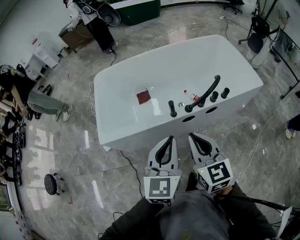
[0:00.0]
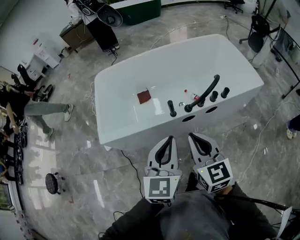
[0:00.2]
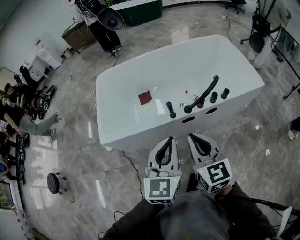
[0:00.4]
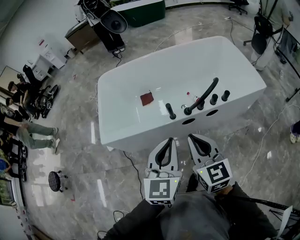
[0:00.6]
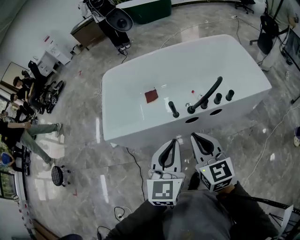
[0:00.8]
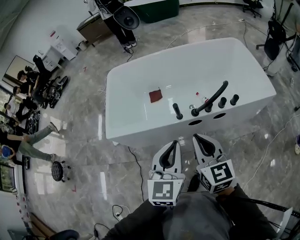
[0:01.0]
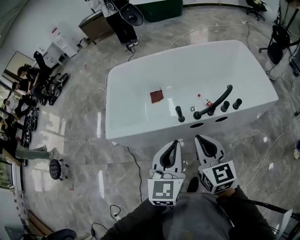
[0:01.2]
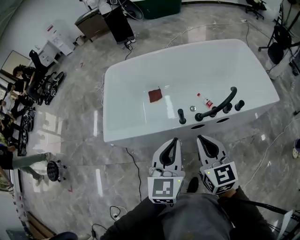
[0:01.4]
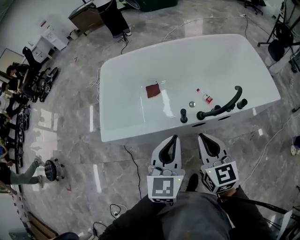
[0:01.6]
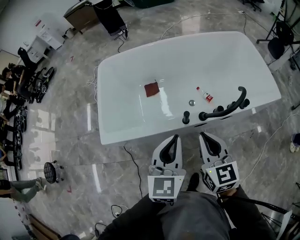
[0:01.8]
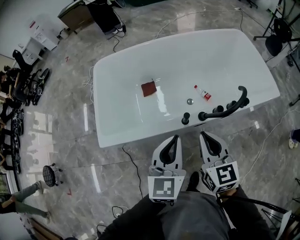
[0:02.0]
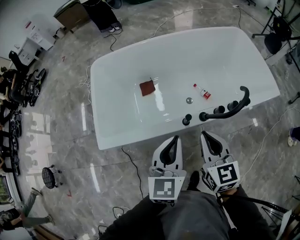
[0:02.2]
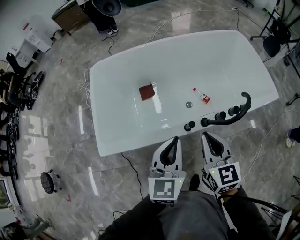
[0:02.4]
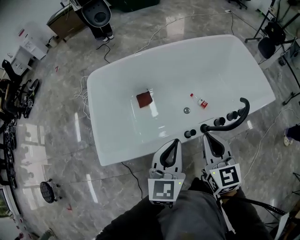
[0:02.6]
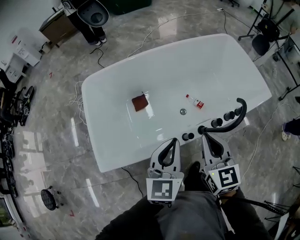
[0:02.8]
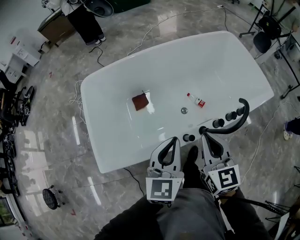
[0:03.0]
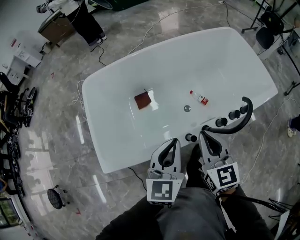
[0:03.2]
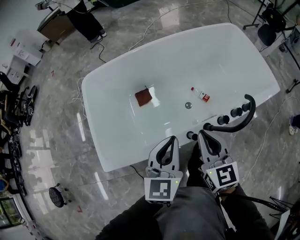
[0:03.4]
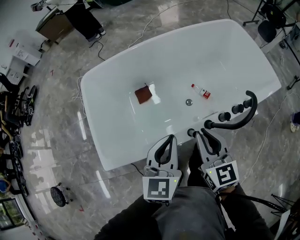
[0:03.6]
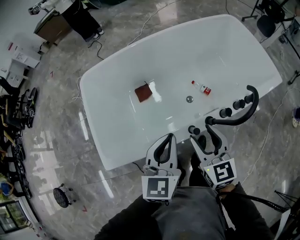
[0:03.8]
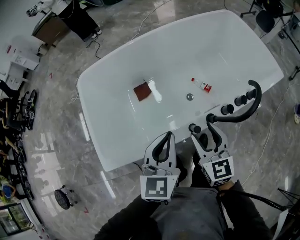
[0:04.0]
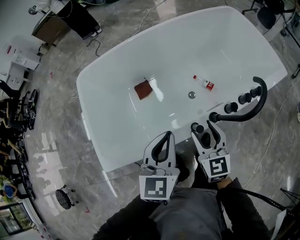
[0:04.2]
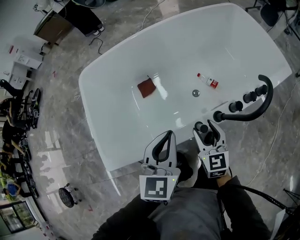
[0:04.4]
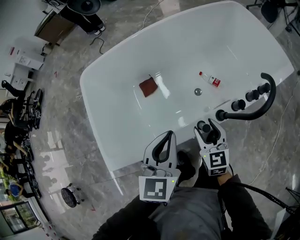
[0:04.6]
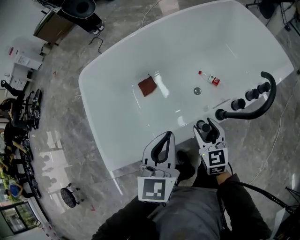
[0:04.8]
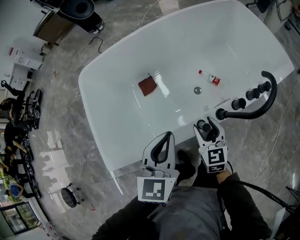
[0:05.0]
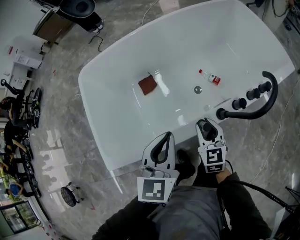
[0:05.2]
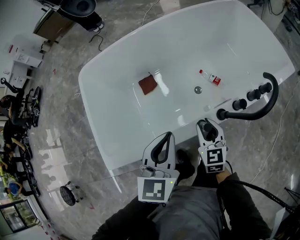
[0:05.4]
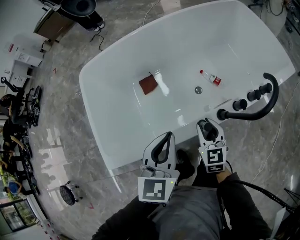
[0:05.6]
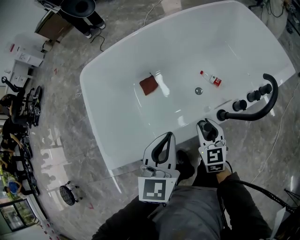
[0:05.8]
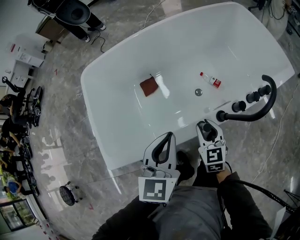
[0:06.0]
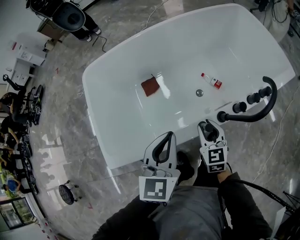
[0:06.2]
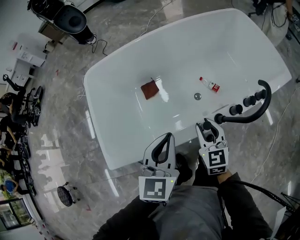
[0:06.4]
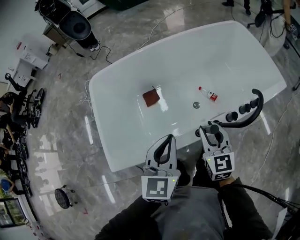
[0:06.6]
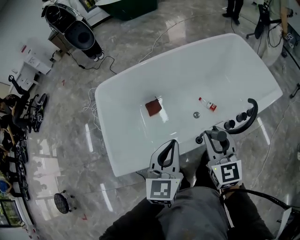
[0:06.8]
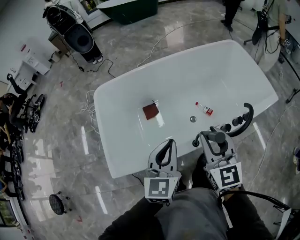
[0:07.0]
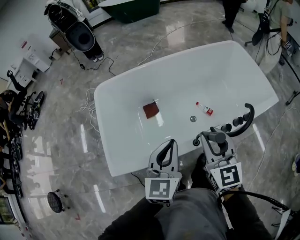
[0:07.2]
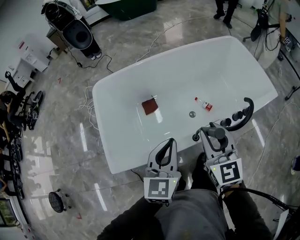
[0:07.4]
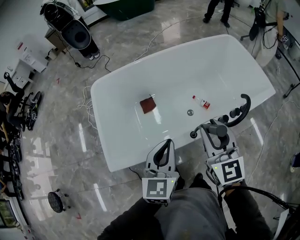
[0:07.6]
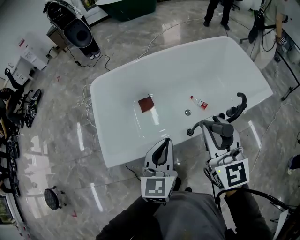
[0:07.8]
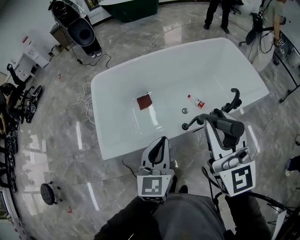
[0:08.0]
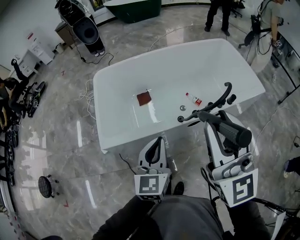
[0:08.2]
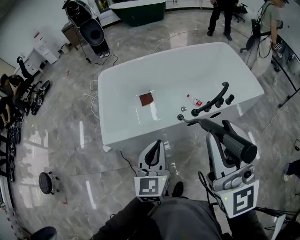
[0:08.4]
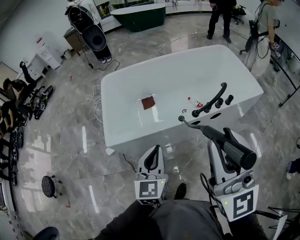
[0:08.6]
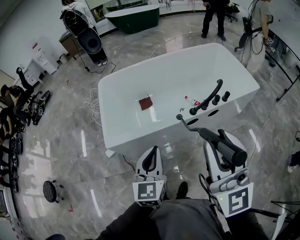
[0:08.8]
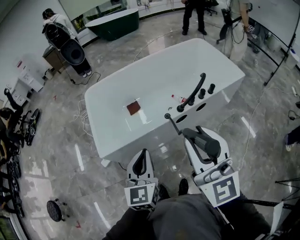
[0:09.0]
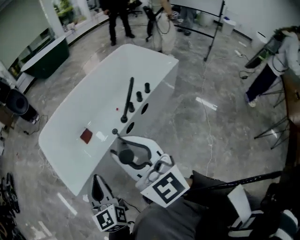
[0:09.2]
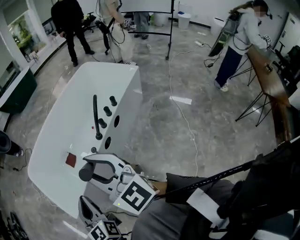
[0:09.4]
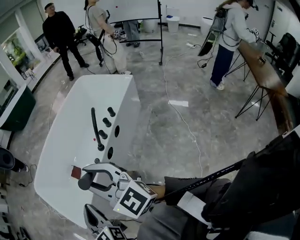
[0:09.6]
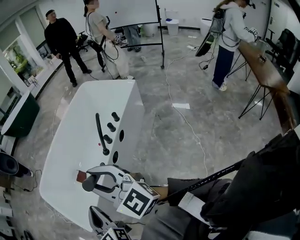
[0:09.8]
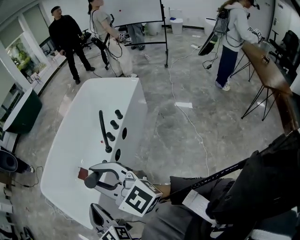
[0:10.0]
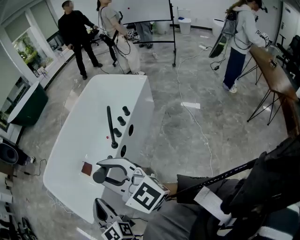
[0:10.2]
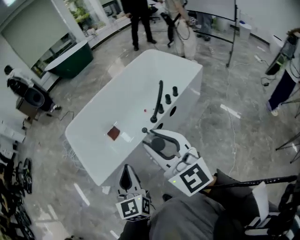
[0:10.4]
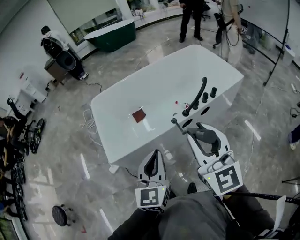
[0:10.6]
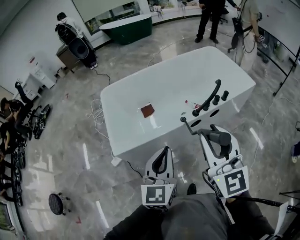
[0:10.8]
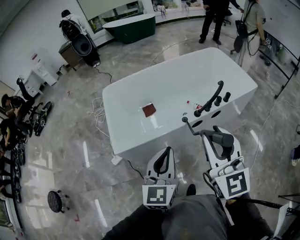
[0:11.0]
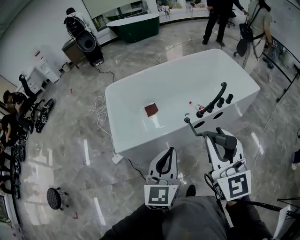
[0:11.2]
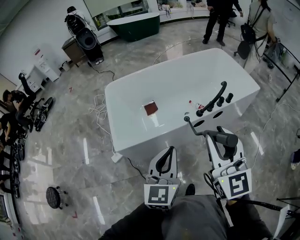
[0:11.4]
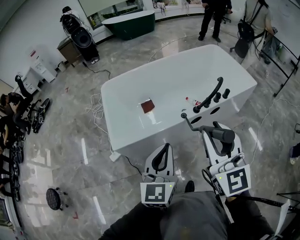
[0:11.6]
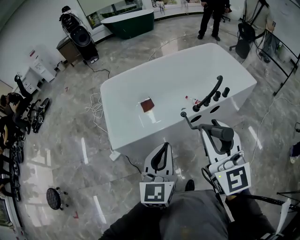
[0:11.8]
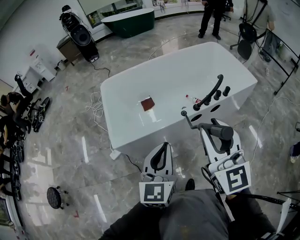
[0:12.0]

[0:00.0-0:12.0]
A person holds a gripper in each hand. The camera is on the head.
0:00.0 to 0:01.6: The left gripper moves forward, some 10 cm. Meanwhile the right gripper travels forward and downward by approximately 10 cm.
0:01.6 to 0:03.0: Both grippers move forward, approximately 15 cm.
0:03.0 to 0:04.4: The left gripper goes roughly 10 cm downward; the right gripper shifts approximately 20 cm downward, and opens its fingers.
0:04.4 to 0:06.0: The right gripper closes up.
0:06.0 to 0:07.6: The left gripper goes about 10 cm upward. Meanwhile the right gripper is displaced upward by approximately 30 cm, and rotates some 20 degrees.
0:07.6 to 0:09.0: The right gripper travels backward and upward by approximately 30 cm, and changes its angle by some 20 degrees; the left gripper travels backward by about 25 cm.
0:09.0 to 0:10.4: Both grippers move to the right and backward, some 20 cm.
0:10.4 to 0:12.0: The two grippers go some 20 cm to the left and forward.

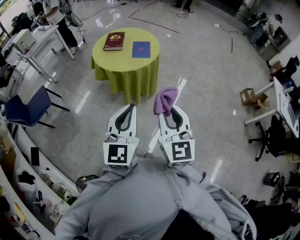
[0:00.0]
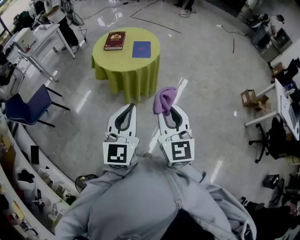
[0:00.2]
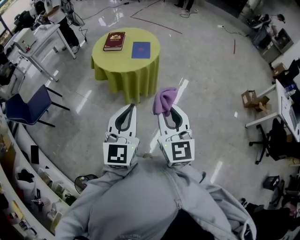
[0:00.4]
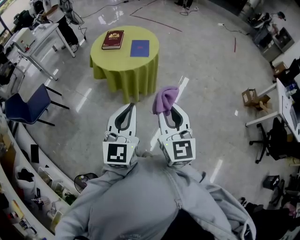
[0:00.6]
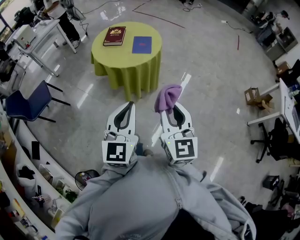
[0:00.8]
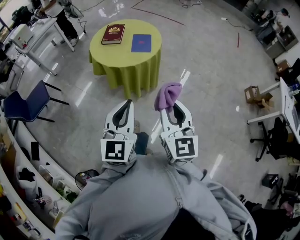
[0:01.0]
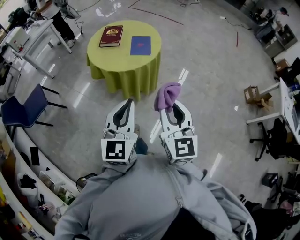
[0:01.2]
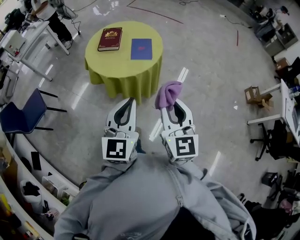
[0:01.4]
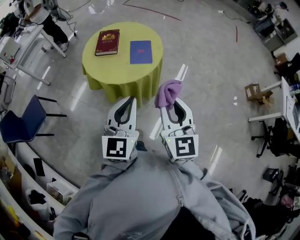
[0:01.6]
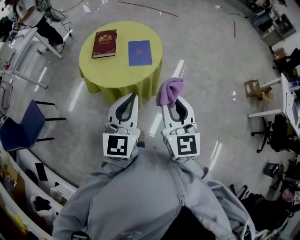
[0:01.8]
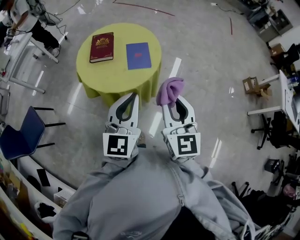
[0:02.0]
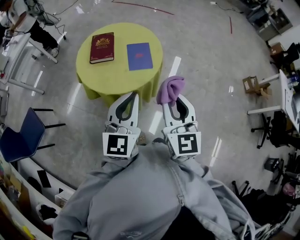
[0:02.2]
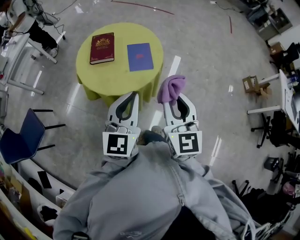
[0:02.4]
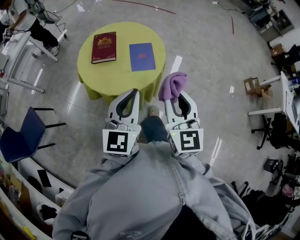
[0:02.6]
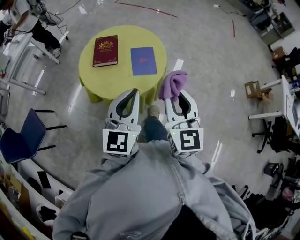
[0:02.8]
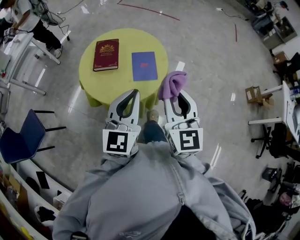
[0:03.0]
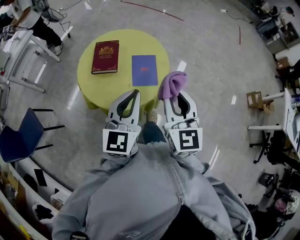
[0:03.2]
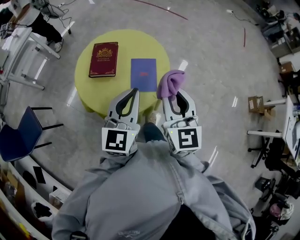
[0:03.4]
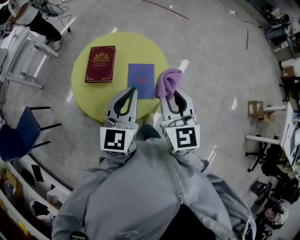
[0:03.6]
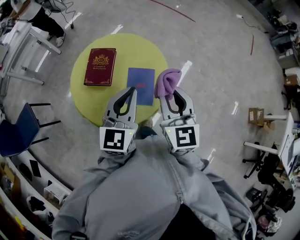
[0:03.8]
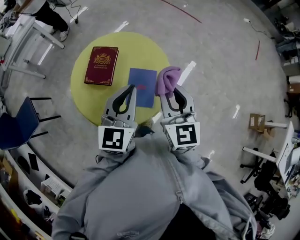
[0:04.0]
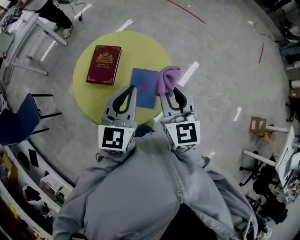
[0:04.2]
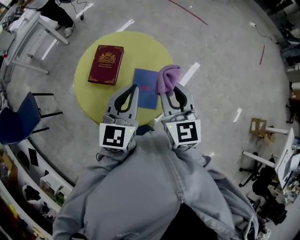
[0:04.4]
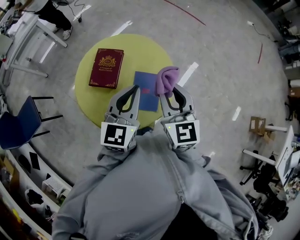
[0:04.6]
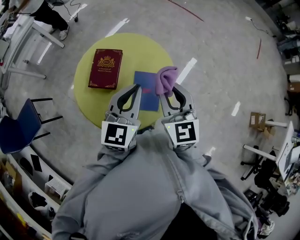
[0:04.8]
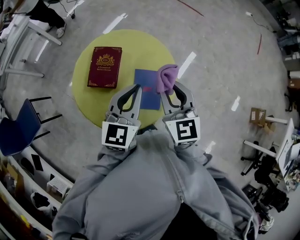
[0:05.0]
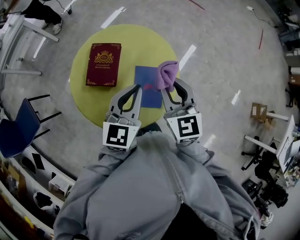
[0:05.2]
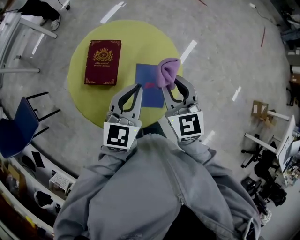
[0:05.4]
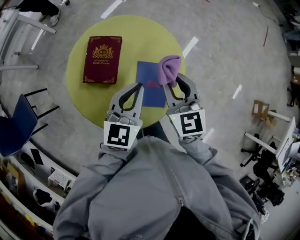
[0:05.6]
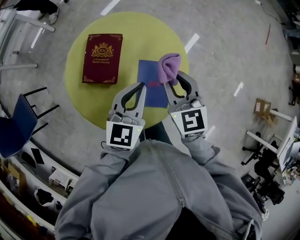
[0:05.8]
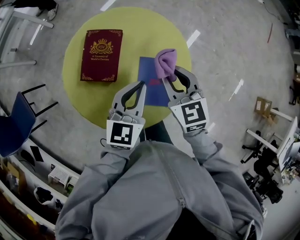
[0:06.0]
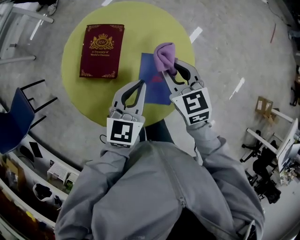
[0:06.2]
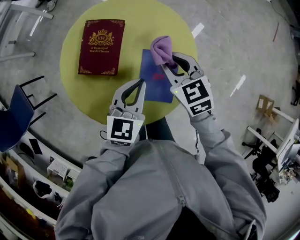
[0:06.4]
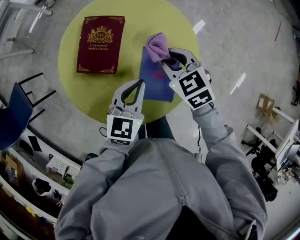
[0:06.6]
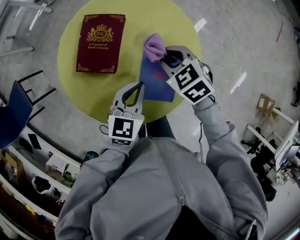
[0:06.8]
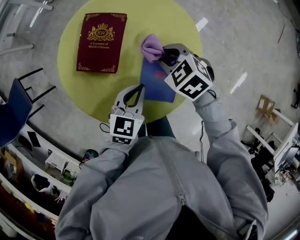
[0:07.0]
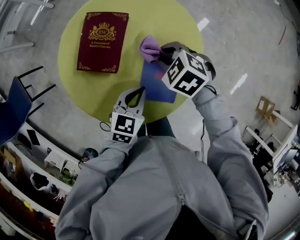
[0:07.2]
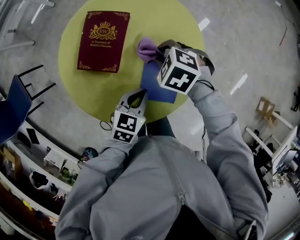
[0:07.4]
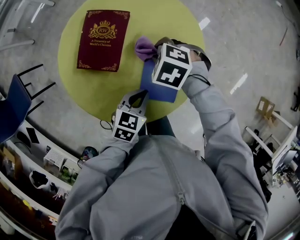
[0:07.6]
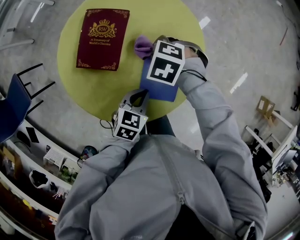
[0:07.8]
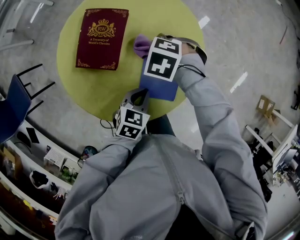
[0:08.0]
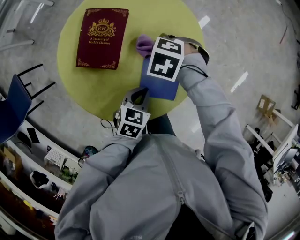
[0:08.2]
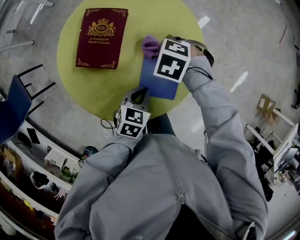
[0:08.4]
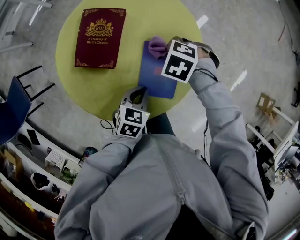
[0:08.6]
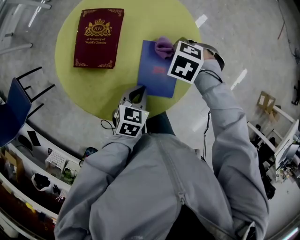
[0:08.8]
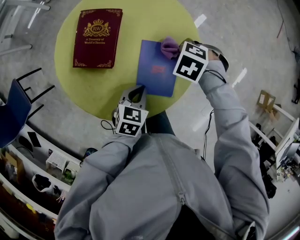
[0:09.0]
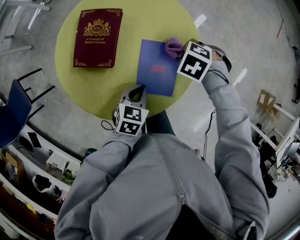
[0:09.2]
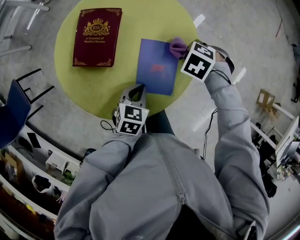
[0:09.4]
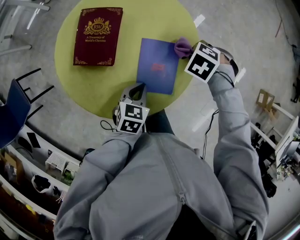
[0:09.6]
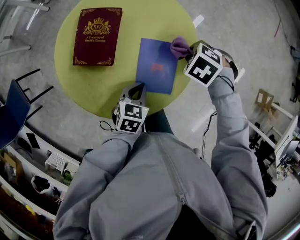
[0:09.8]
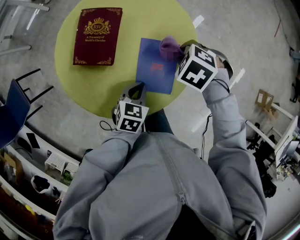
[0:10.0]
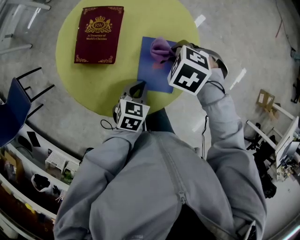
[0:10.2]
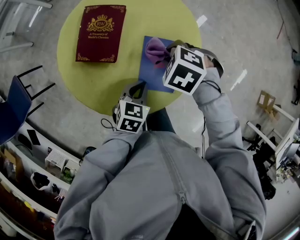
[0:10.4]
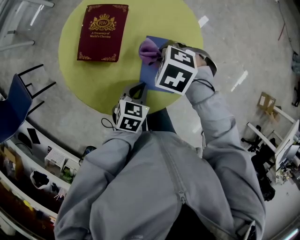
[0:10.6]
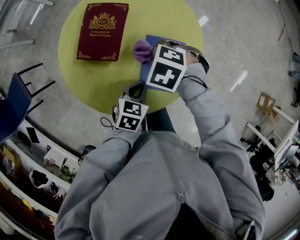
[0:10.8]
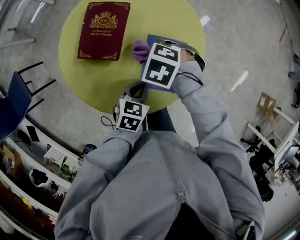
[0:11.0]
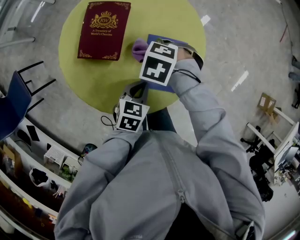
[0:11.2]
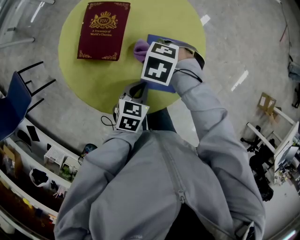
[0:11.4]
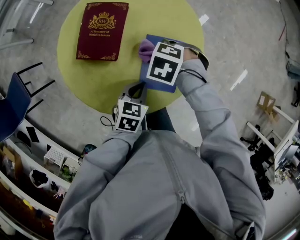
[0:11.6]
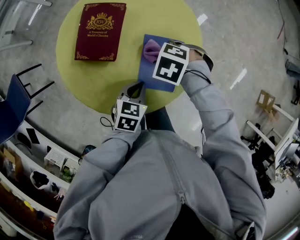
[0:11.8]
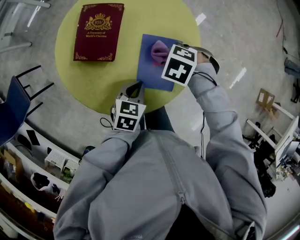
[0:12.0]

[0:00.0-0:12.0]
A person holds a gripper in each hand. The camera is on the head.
0:00.0 to 0:01.6: Both grippers travel together forward, approximately 25 cm.
0:01.6 to 0:03.0: Both grippers travel together forward, roughly 20 cm.
0:03.0 to 0:04.4: Both grippers move forward, approximately 25 cm.
0:04.4 to 0:06.0: Both grippers travel together downward and forward, some 20 cm.
0:06.0 to 0:07.6: The right gripper heads downward, covering about 15 cm, and tips its fingers downward by about 50 degrees, while the left gripper travels downward and backward by some 20 cm, and changes its angle by approximately 30 degrees.
0:07.6 to 0:09.0: The right gripper shifts by approximately 10 cm.
0:09.0 to 0:10.4: The right gripper ends up roughly 10 cm from where it was.
0:10.4 to 0:12.0: The right gripper shifts by about 5 cm.
